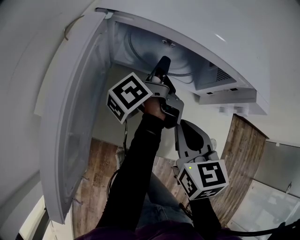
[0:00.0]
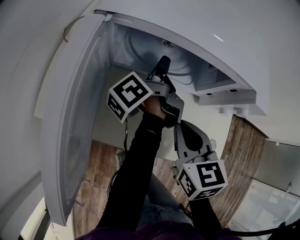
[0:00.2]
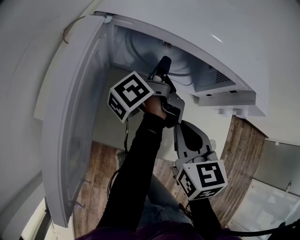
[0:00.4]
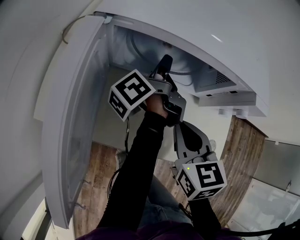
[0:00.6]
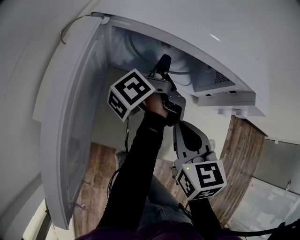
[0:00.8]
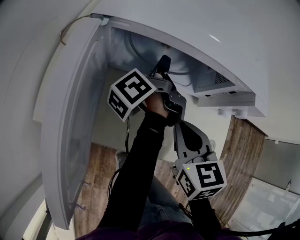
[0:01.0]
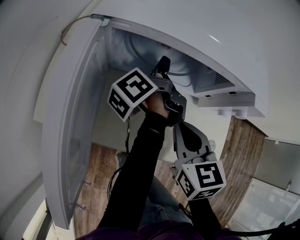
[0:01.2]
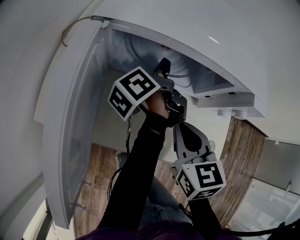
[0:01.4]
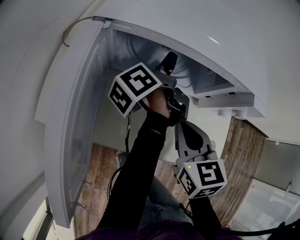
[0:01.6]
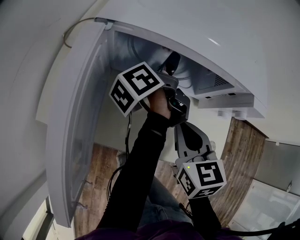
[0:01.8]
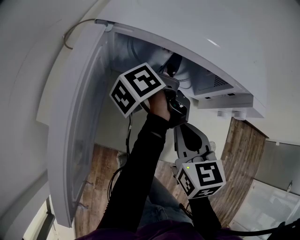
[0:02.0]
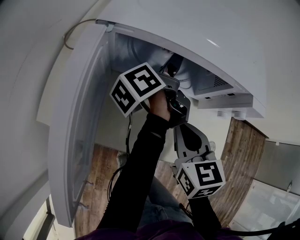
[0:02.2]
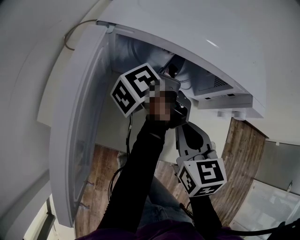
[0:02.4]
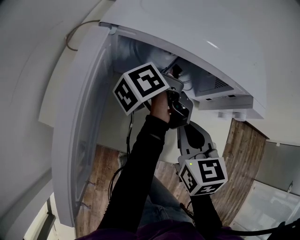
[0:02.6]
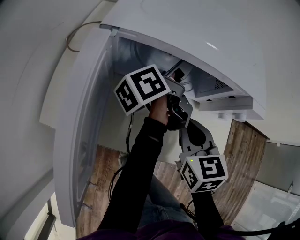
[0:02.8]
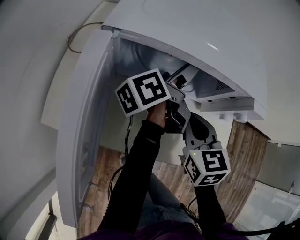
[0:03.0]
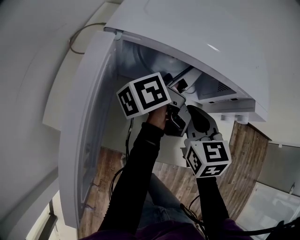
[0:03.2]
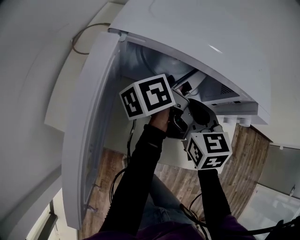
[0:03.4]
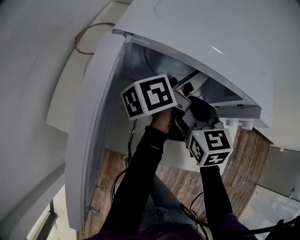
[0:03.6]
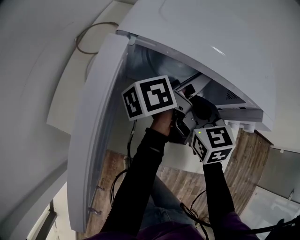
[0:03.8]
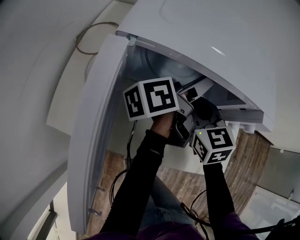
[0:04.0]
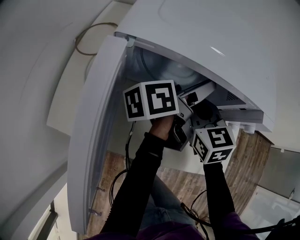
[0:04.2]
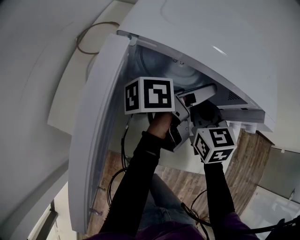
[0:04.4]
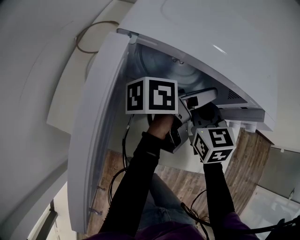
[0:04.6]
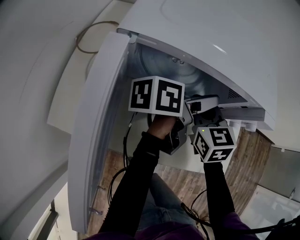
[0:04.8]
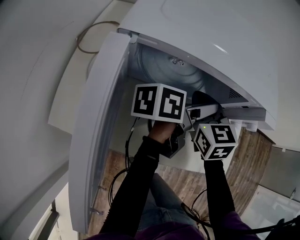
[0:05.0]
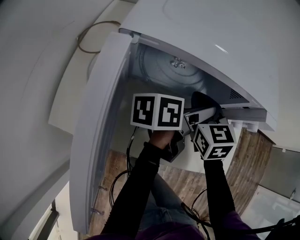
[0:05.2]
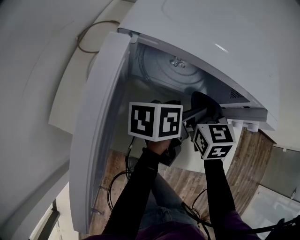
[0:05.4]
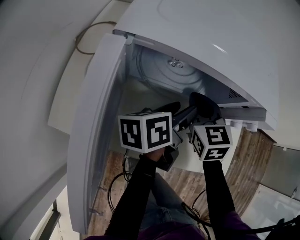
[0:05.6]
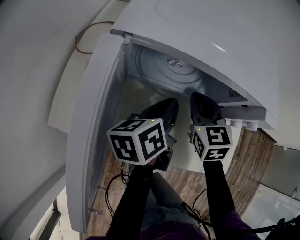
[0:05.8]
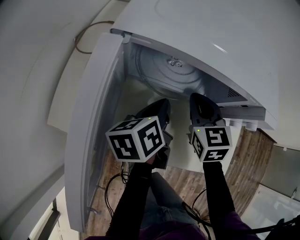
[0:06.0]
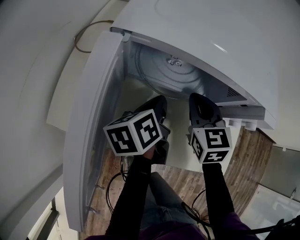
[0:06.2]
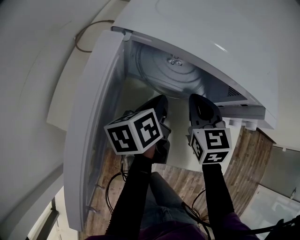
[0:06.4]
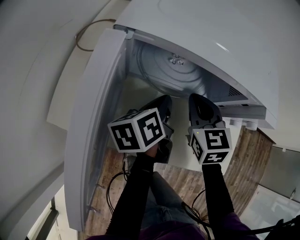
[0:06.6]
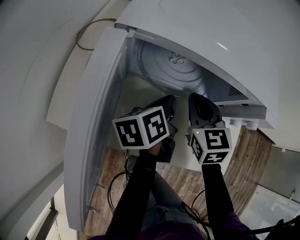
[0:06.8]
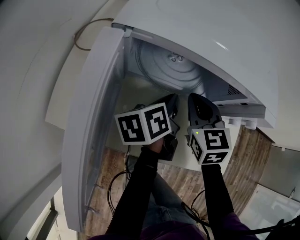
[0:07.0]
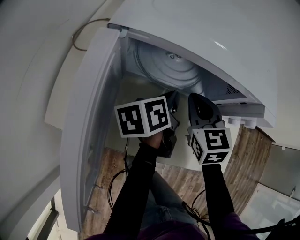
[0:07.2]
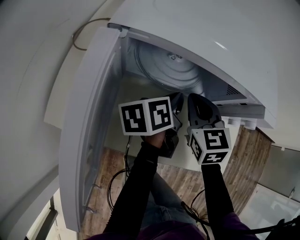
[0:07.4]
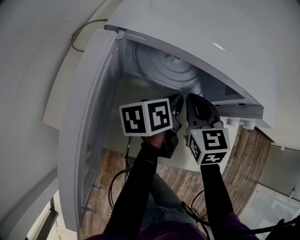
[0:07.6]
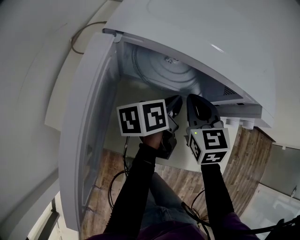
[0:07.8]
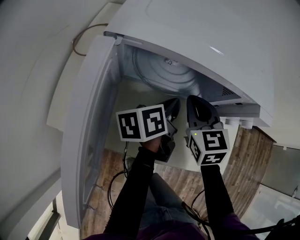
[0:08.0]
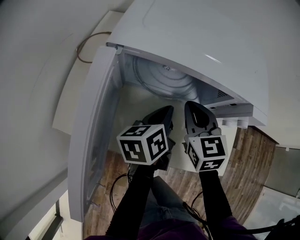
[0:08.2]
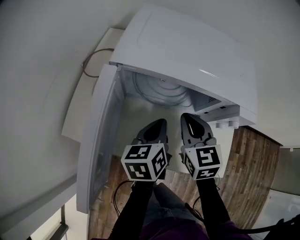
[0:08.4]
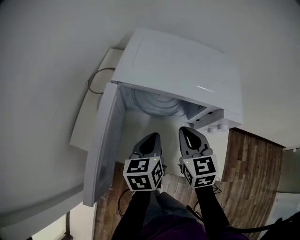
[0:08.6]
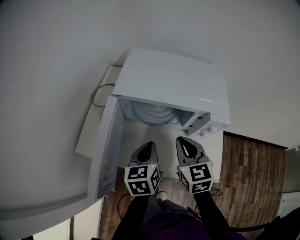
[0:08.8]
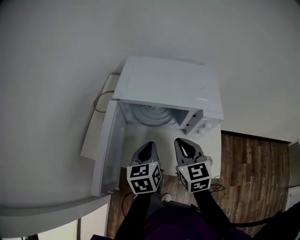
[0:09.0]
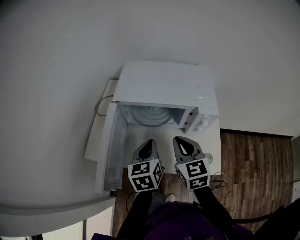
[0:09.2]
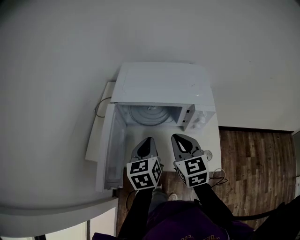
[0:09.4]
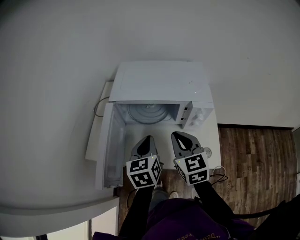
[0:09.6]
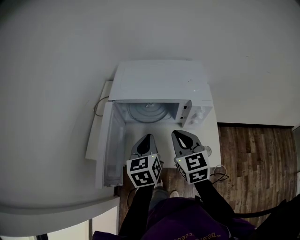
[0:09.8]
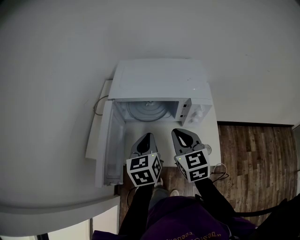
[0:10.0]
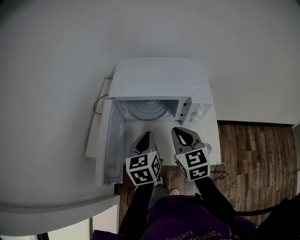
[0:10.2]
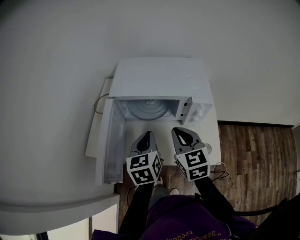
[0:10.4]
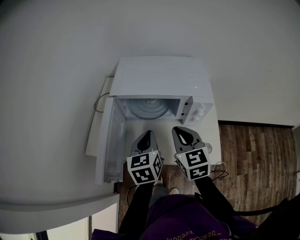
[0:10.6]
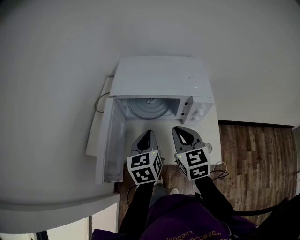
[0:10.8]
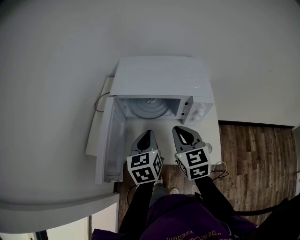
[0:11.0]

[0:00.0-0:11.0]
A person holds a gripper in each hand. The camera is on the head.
0.0 to 1.6 s: There are only small adjustments of the grippers.
1.6 to 3.2 s: The right gripper travels forward by some 5 cm, while the left gripper rotates approximately 20 degrees, and opens its fingers.
3.2 to 4.8 s: The left gripper shifts by approximately 5 cm, and rotates about 30 degrees. The right gripper moves some 5 cm.
4.8 to 6.2 s: The left gripper is displaced to the left and downward by about 10 cm, swivels roughly 40 degrees, and closes.
6.2 to 7.8 s: The left gripper travels to the right by roughly 5 cm.
7.8 to 9.4 s: The grippers both shift upward and backward by some 20 cm. The left gripper twists some 40 degrees clockwise, seen from behind.
9.4 to 11.0 s: The two grippers keep their place.

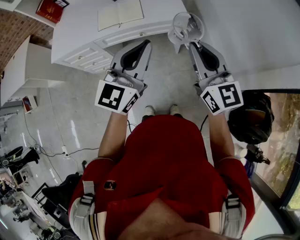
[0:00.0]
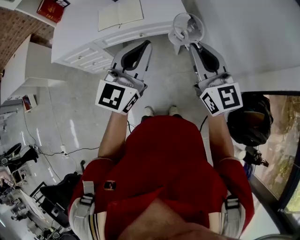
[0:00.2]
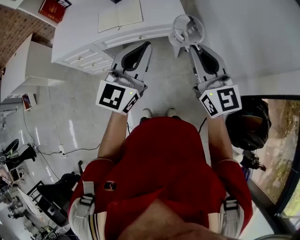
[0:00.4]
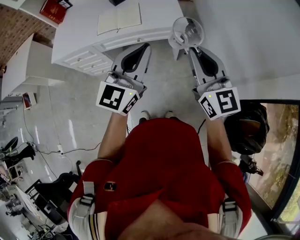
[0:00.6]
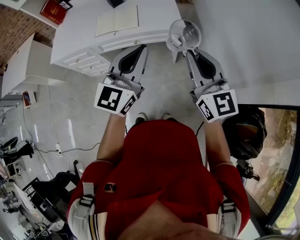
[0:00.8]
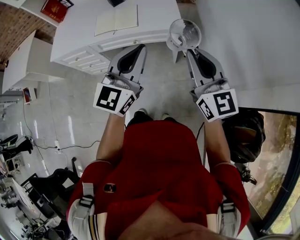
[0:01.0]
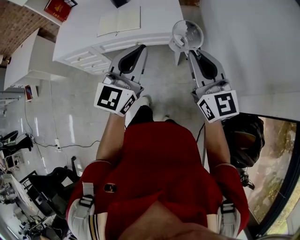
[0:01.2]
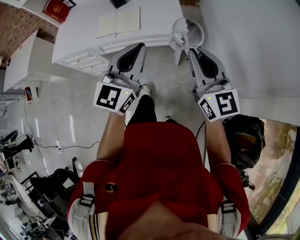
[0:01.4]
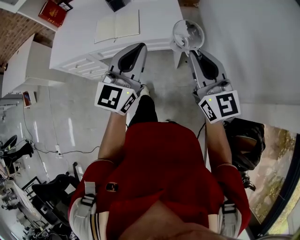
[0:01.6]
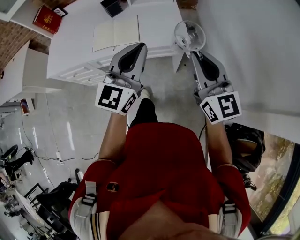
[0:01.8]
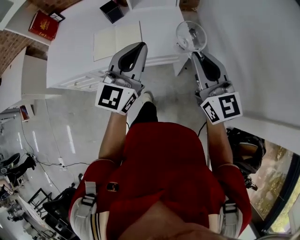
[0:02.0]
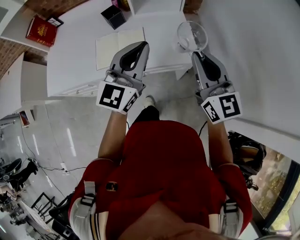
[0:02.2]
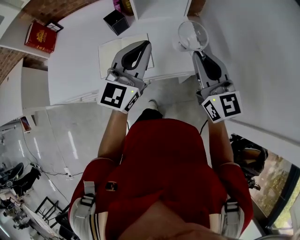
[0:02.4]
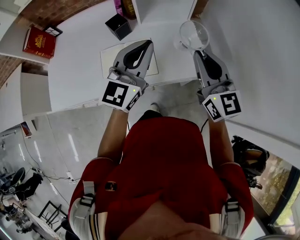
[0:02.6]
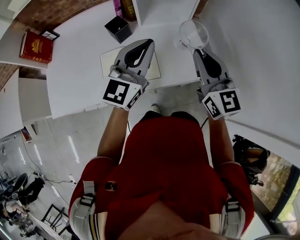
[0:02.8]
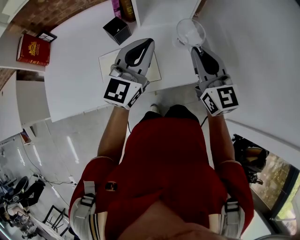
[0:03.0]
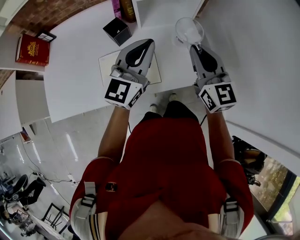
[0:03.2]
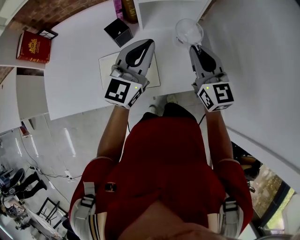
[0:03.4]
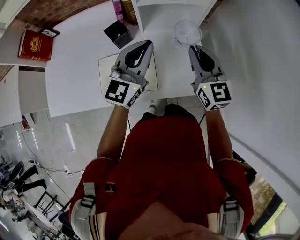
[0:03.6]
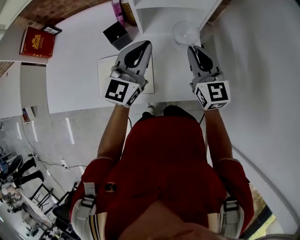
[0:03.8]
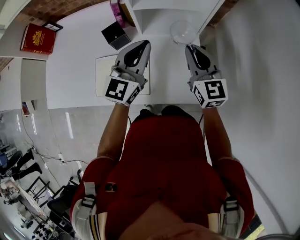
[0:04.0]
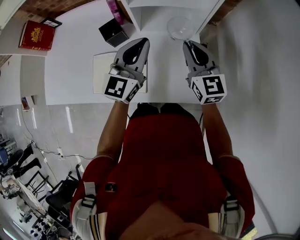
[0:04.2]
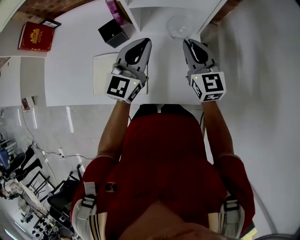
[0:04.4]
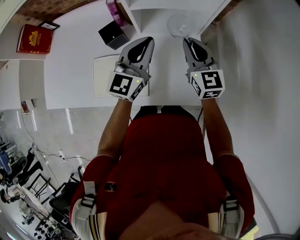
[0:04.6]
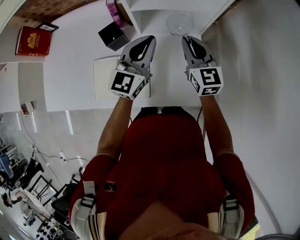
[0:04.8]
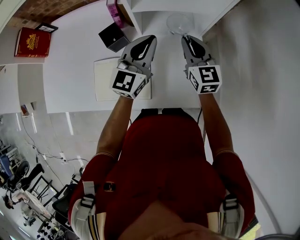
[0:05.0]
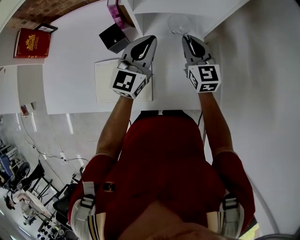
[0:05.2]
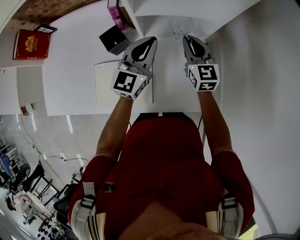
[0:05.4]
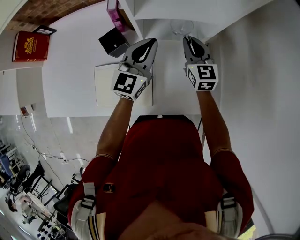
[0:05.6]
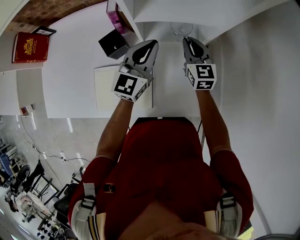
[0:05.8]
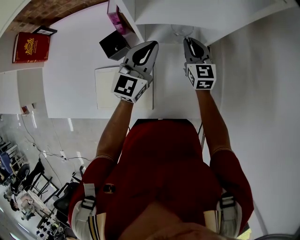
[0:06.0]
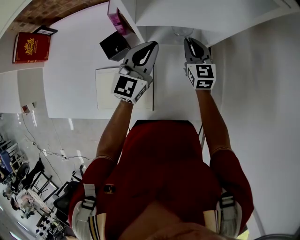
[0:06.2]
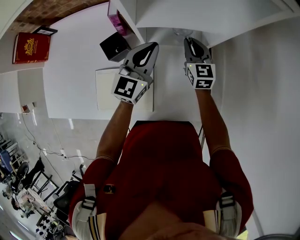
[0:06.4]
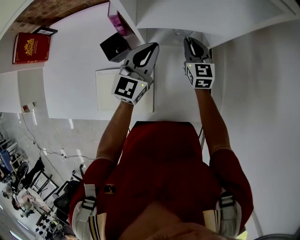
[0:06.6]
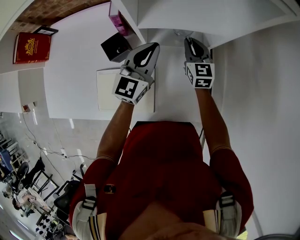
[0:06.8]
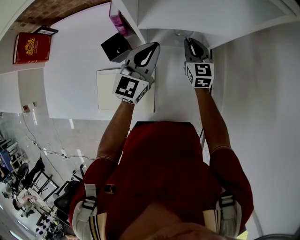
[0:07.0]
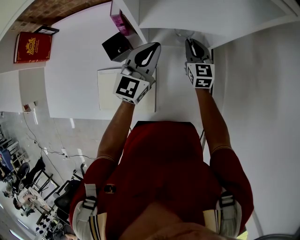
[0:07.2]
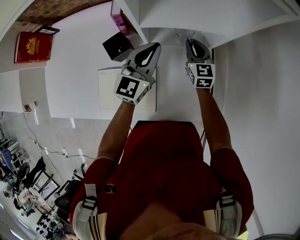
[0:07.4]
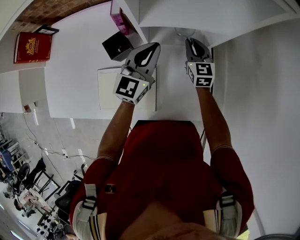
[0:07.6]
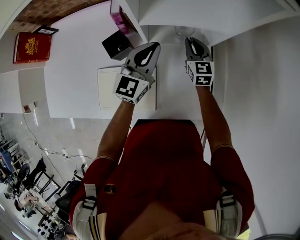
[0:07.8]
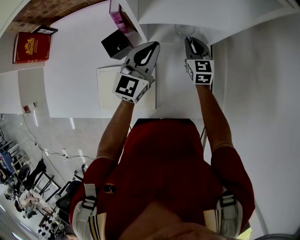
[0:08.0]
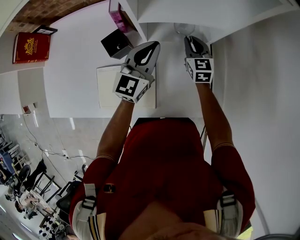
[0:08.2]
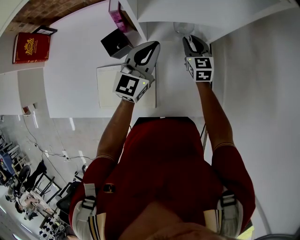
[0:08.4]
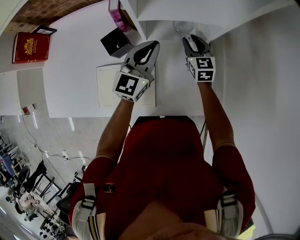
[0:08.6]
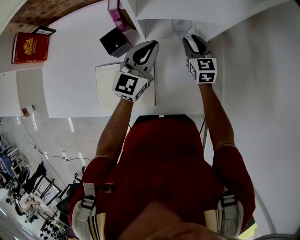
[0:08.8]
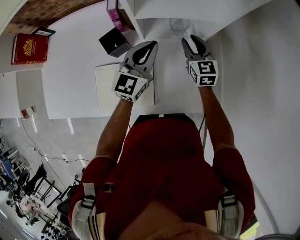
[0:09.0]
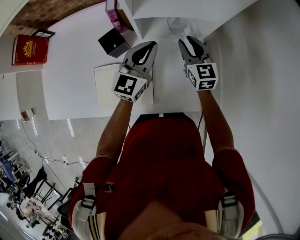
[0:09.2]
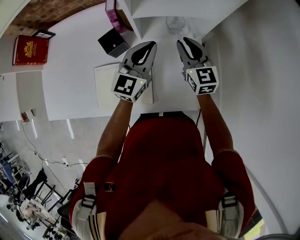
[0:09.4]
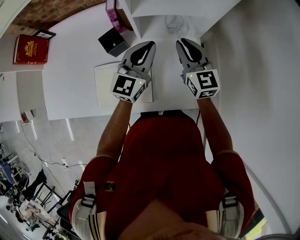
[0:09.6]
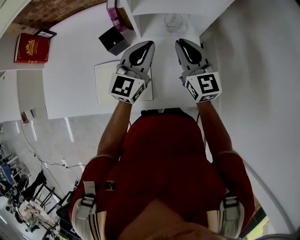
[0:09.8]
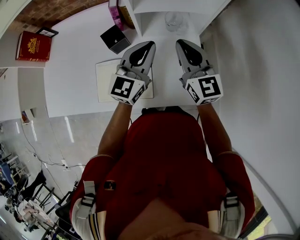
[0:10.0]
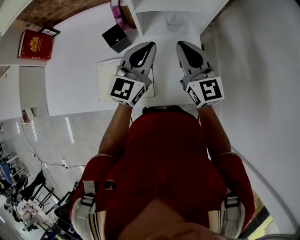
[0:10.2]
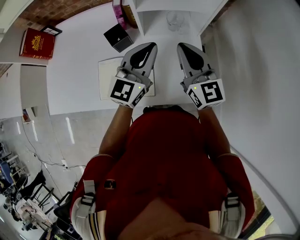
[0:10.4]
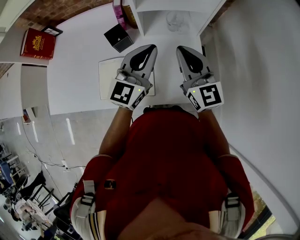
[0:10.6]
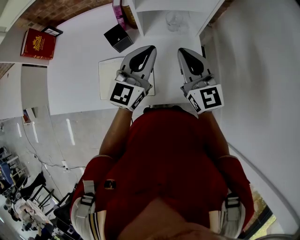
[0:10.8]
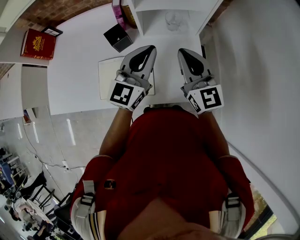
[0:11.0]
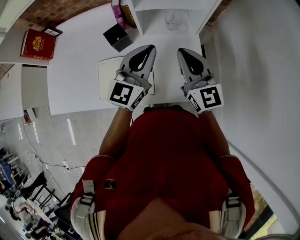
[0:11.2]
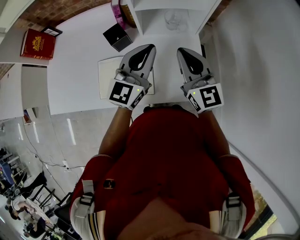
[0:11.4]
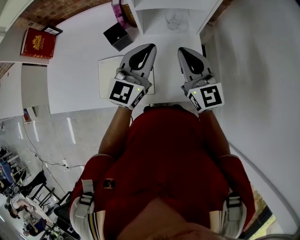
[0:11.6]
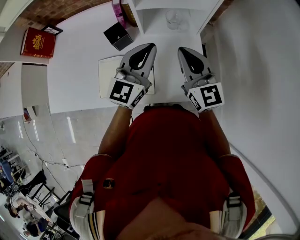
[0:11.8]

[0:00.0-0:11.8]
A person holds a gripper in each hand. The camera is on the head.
0.0 to 1.4 s: The left gripper is displaced forward and to the right by approximately 10 cm; the right gripper travels to the right and forward by about 10 cm.
1.4 to 3.0 s: The two grippers go some 40 cm forward and to the left.
3.0 to 4.4 s: The two grippers go about 15 cm forward and downward.
4.4 to 6.0 s: The left gripper shifts approximately 10 cm forward, while the right gripper is displaced forward and downward by approximately 15 cm.
6.0 to 7.4 s: The grippers move only a little.
7.4 to 8.8 s: The right gripper opens up.
8.8 to 10.4 s: The left gripper goes approximately 10 cm backward and upward. Meanwhile the right gripper goes roughly 25 cm upward and backward, swivels approximately 30 degrees, and closes up.
10.4 to 11.8 s: The grippers stay close to where they were, moving slightly.

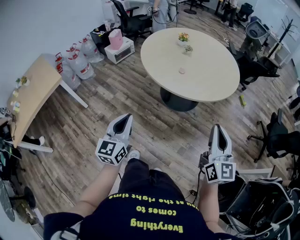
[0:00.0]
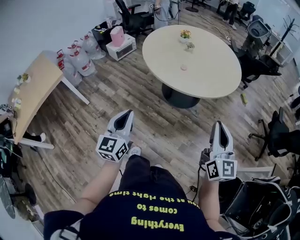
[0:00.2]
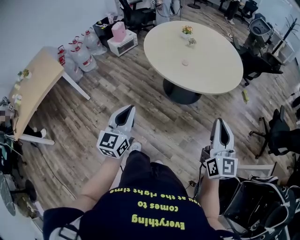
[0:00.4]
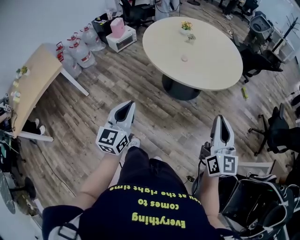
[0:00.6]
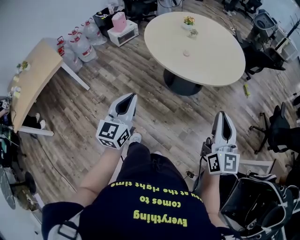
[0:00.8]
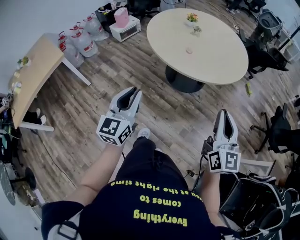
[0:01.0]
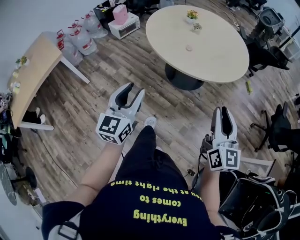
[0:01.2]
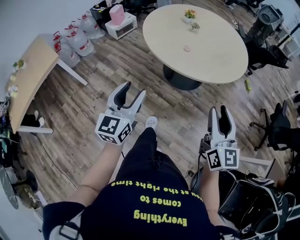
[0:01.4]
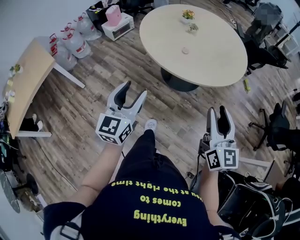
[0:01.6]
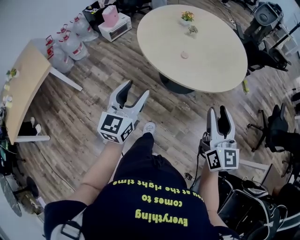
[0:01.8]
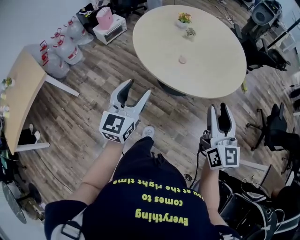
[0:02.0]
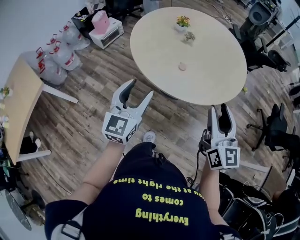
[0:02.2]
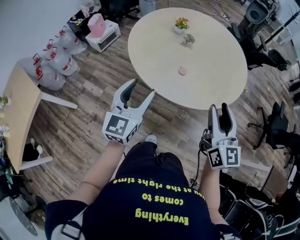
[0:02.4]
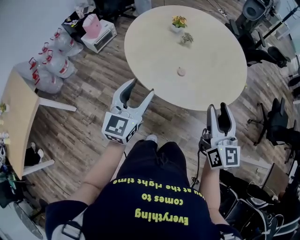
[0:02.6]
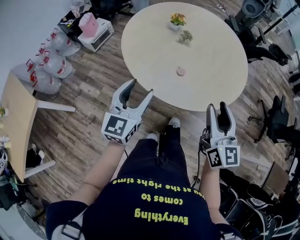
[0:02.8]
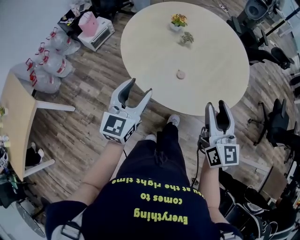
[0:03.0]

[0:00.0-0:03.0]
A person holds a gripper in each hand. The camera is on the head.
0.0 to 1.6 s: Both grippers move forward, some 5 cm. The right gripper opens its fingers. Meanwhile the left gripper opens.
1.6 to 3.0 s: Both grippers travel together forward, approximately 30 cm.
